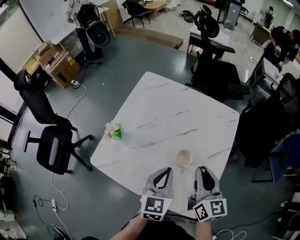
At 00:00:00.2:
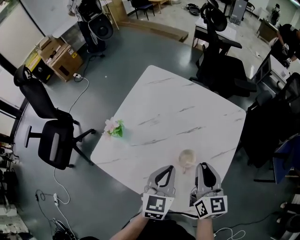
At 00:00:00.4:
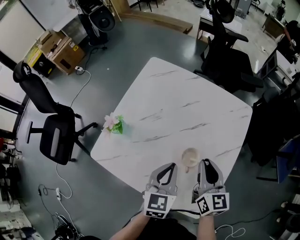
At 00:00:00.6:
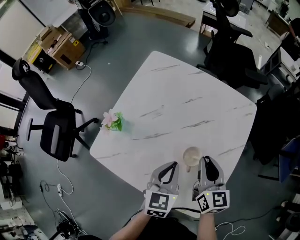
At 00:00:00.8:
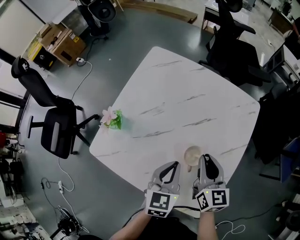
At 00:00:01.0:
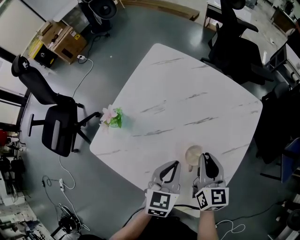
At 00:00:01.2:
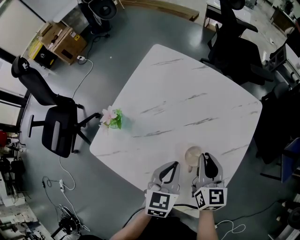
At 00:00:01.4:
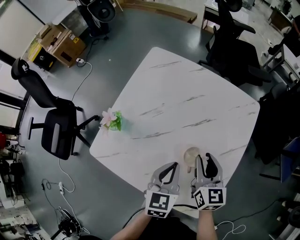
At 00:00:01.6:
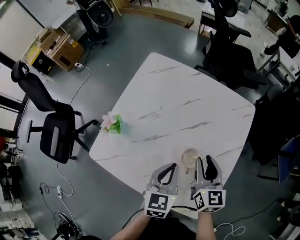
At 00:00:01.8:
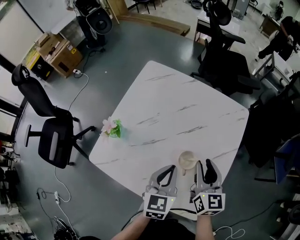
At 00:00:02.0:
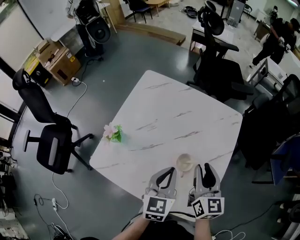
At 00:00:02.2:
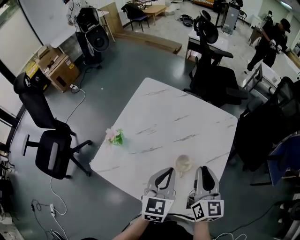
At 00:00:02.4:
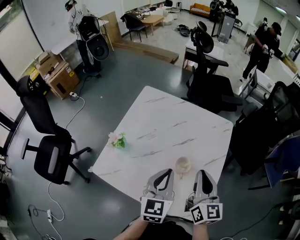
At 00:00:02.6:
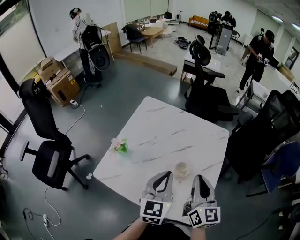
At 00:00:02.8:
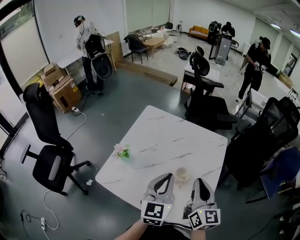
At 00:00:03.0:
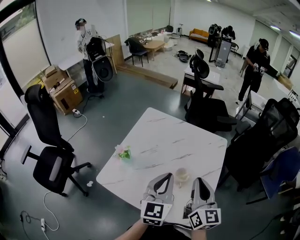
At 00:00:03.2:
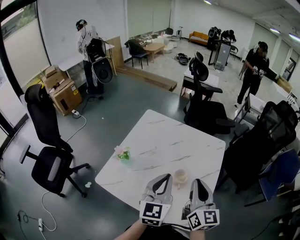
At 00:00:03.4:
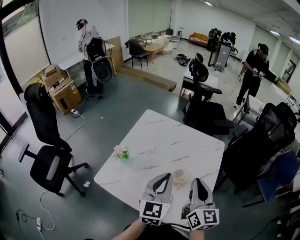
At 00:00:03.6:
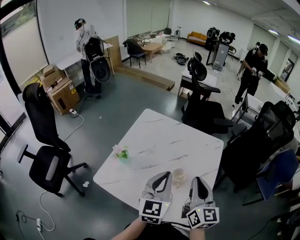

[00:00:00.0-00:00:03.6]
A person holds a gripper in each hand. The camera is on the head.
00:00:00.0 to 00:00:01.8: The right gripper shifts about 5 cm downward, and opens up.
00:00:01.8 to 00:00:03.6: The left gripper is displaced upward by approximately 15 cm, and changes its angle by roughly 20 degrees, while the right gripper goes some 15 cm upward and backward, and closes up.

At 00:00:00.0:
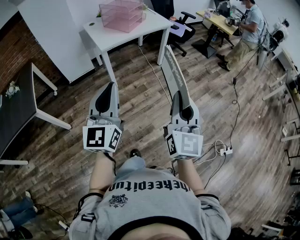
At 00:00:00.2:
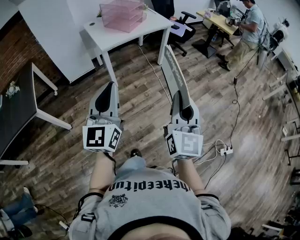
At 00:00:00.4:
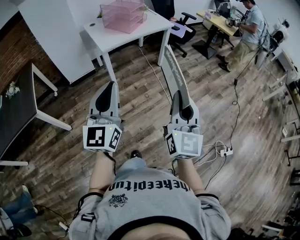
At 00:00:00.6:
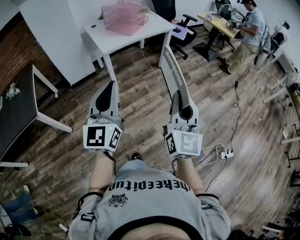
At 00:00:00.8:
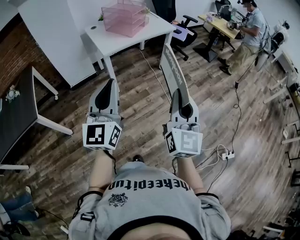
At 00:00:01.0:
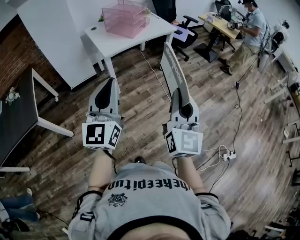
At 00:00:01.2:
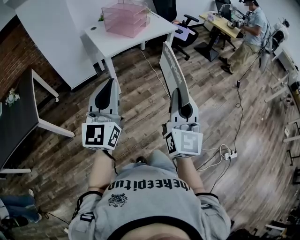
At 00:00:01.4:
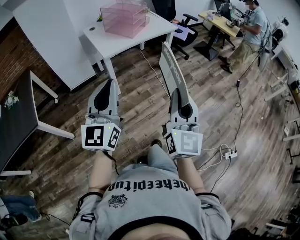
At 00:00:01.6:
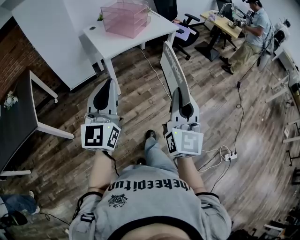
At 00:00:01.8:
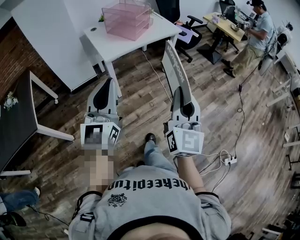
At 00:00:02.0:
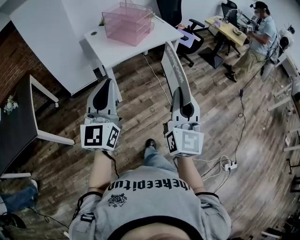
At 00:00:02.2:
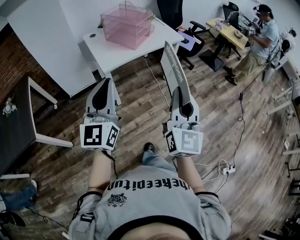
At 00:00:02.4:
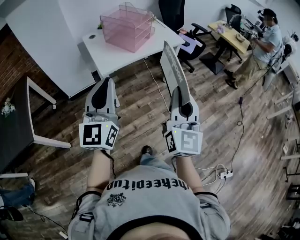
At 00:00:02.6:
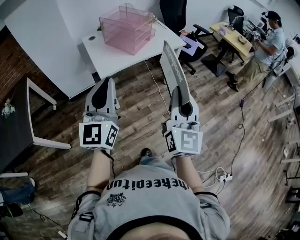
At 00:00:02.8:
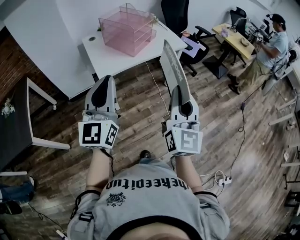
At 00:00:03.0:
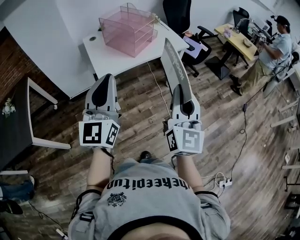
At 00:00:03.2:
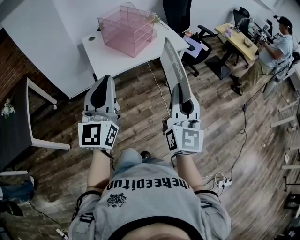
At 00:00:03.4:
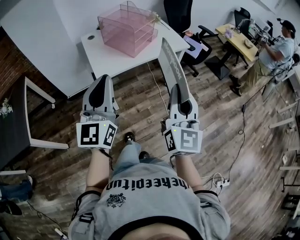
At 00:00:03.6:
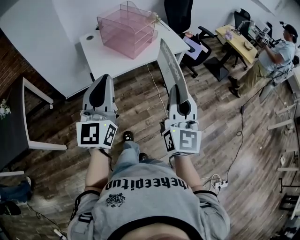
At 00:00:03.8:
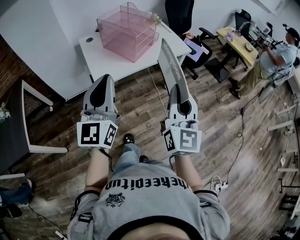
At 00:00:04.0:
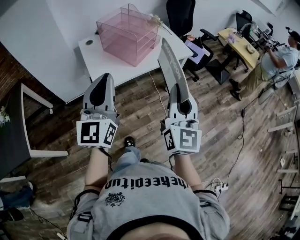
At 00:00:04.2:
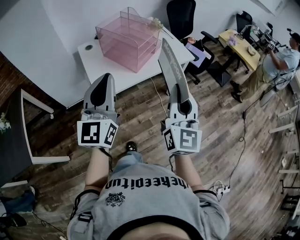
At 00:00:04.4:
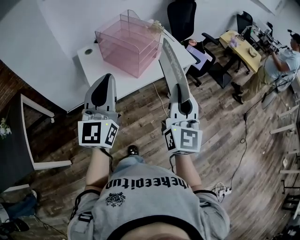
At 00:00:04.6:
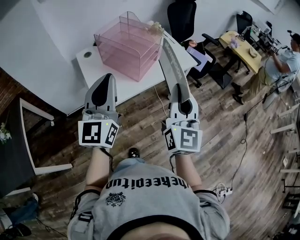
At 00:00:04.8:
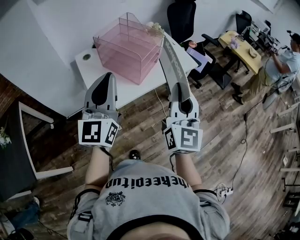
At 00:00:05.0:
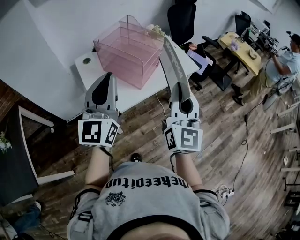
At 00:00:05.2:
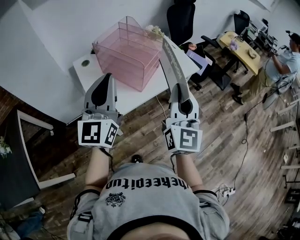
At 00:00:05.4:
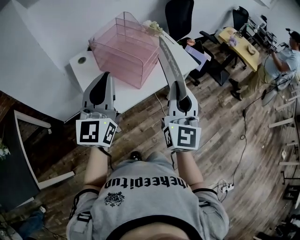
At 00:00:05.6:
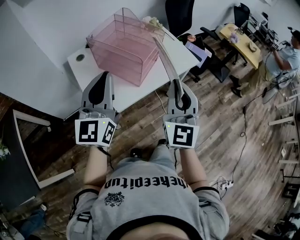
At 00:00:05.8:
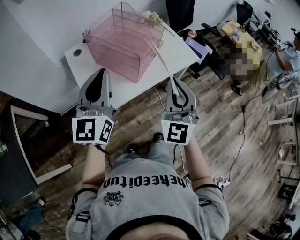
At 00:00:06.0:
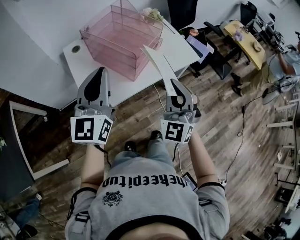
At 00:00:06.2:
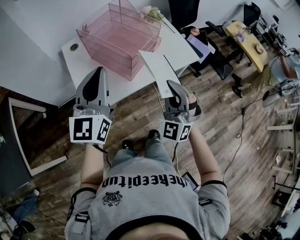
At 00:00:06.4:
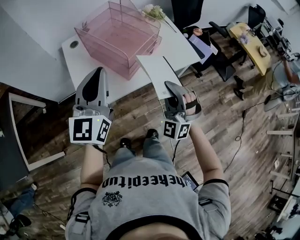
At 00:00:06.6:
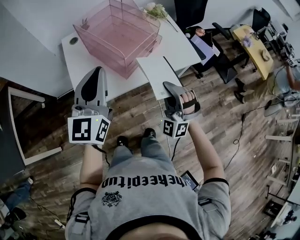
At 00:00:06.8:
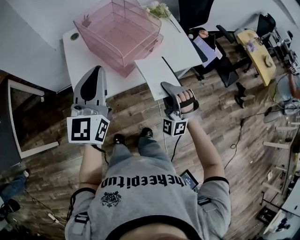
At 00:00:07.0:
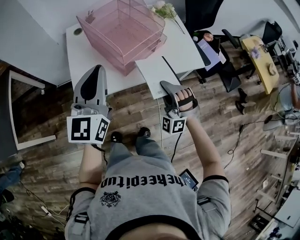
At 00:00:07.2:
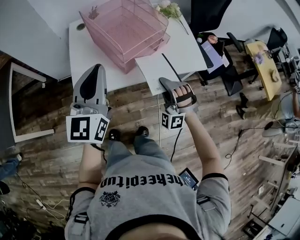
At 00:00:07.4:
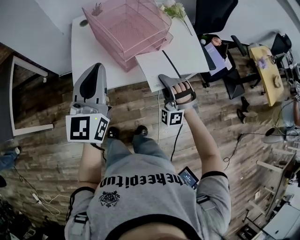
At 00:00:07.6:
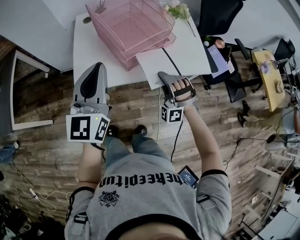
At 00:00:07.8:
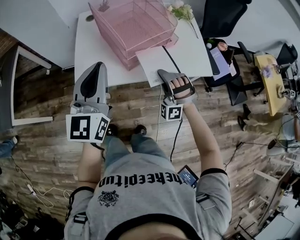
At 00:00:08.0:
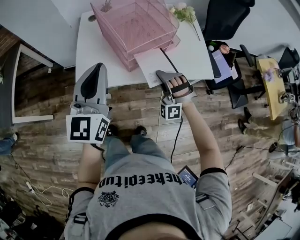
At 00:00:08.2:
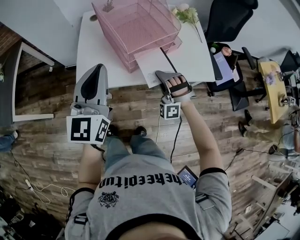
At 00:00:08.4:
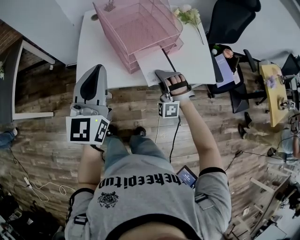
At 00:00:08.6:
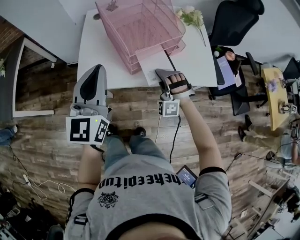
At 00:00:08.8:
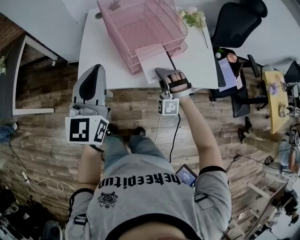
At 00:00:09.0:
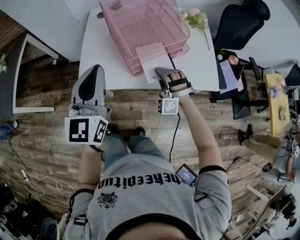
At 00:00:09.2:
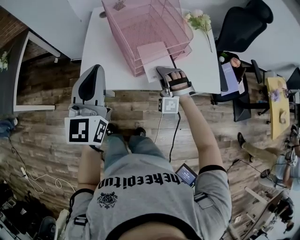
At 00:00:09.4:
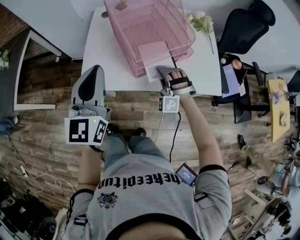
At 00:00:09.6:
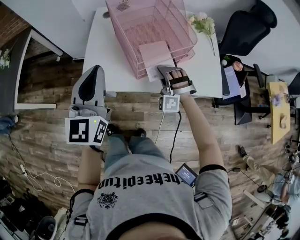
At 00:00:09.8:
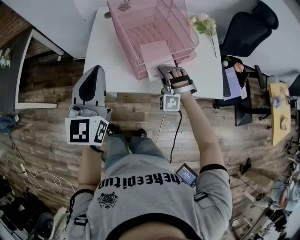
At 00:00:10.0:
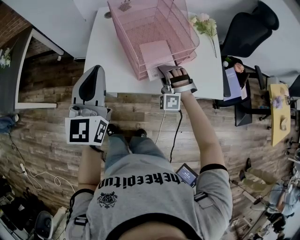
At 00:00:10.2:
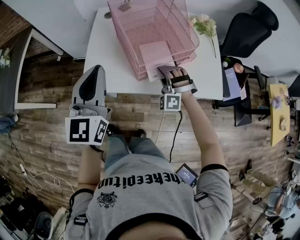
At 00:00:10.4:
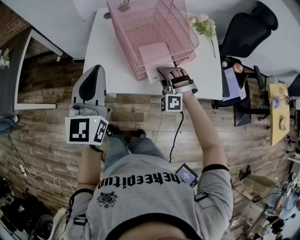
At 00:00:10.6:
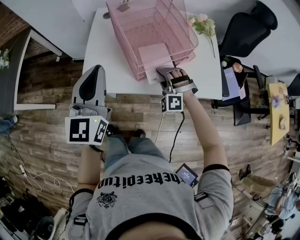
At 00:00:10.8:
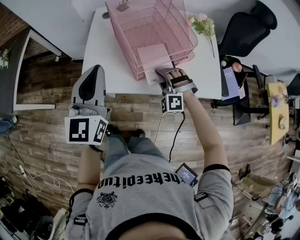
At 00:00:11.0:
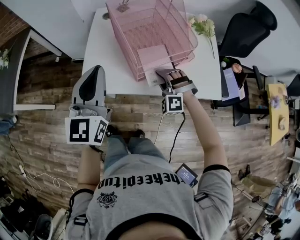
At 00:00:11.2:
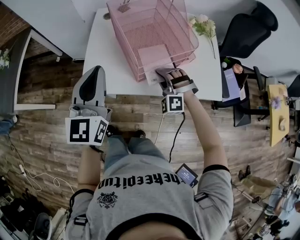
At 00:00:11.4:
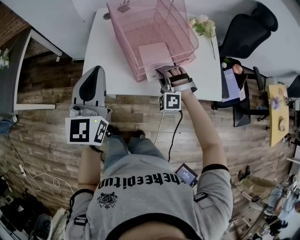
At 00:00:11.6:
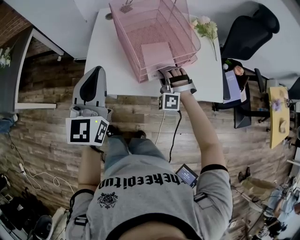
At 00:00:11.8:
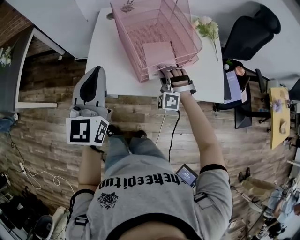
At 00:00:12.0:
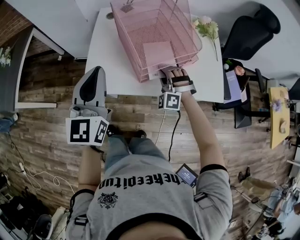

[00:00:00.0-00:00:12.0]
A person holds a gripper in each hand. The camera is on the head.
00:00:00.0 to 00:00:01.6: Both grippers move forward and to the left, some 15 cm.
00:00:01.6 to 00:00:03.0: The grippers both shift forward by roughly 25 cm.
00:00:03.0 to 00:00:04.4: Both grippers travel together forward, roughly 20 cm.
00:00:04.4 to 00:00:06.0: The left gripper travels forward by some 15 cm. Meanwhile the right gripper shifts some 20 cm forward and downward, and rotates around the line of its fingers by about 40 degrees, counterclockwise from behind.
00:00:06.0 to 00:00:07.6: The right gripper travels downward and forward by some 20 cm, and rotates around the line of its fingers by approximately 40 degrees, counterclockwise from behind; the left gripper moves to the right, approximately 10 cm, and changes its angle by approximately 20 degrees.
00:00:07.6 to 00:00:09.0: The right gripper shifts approximately 10 cm forward.
00:00:09.0 to 00:00:12.0: The grippers make only small movements.

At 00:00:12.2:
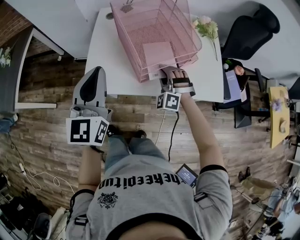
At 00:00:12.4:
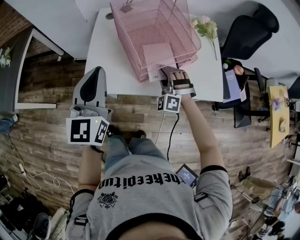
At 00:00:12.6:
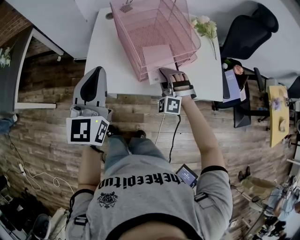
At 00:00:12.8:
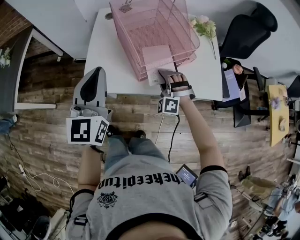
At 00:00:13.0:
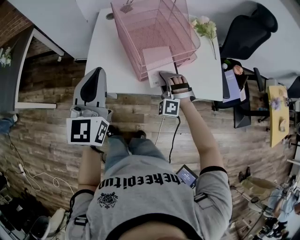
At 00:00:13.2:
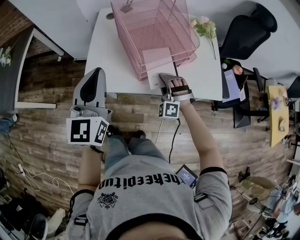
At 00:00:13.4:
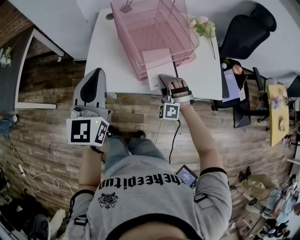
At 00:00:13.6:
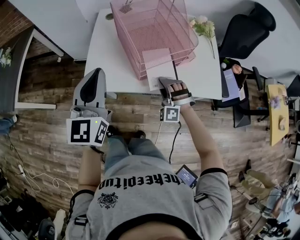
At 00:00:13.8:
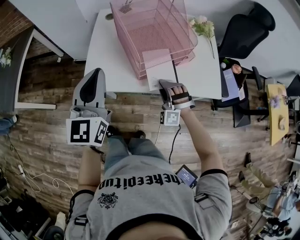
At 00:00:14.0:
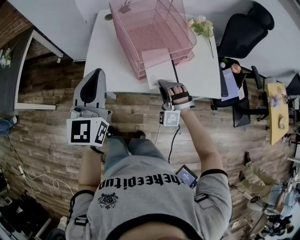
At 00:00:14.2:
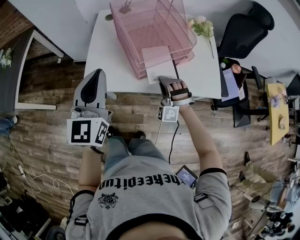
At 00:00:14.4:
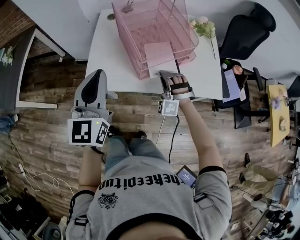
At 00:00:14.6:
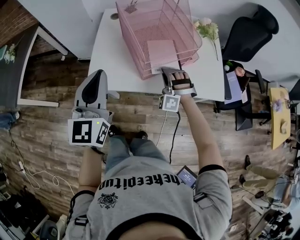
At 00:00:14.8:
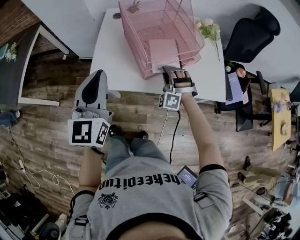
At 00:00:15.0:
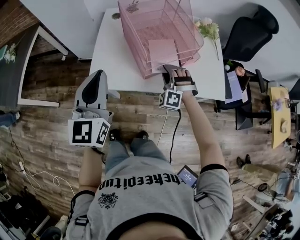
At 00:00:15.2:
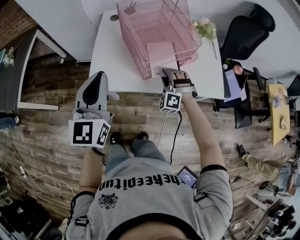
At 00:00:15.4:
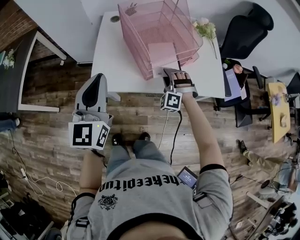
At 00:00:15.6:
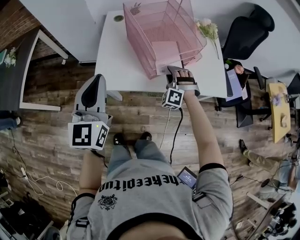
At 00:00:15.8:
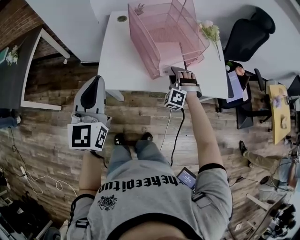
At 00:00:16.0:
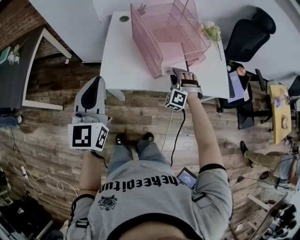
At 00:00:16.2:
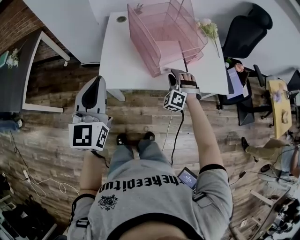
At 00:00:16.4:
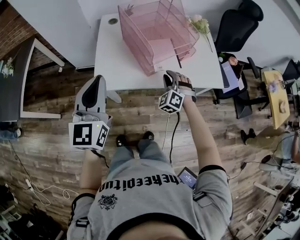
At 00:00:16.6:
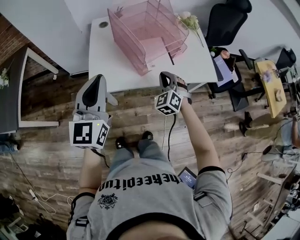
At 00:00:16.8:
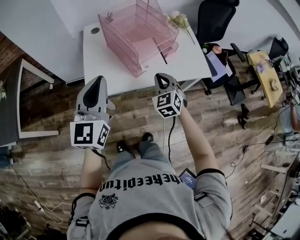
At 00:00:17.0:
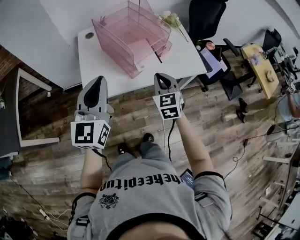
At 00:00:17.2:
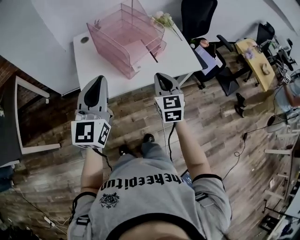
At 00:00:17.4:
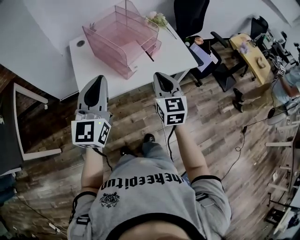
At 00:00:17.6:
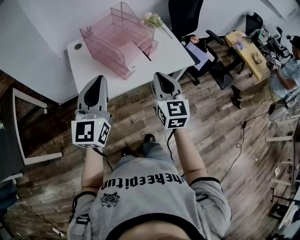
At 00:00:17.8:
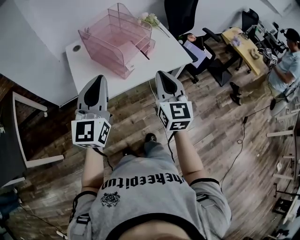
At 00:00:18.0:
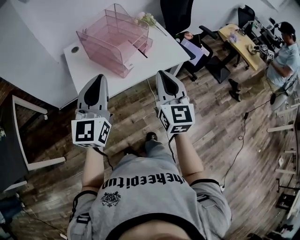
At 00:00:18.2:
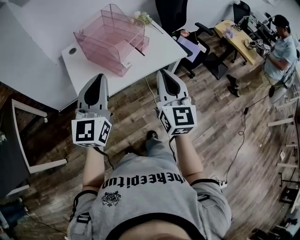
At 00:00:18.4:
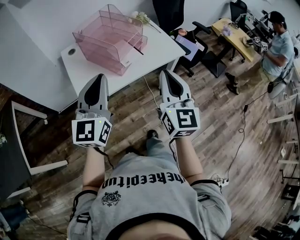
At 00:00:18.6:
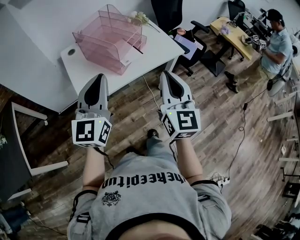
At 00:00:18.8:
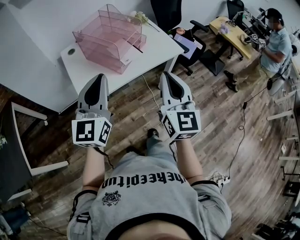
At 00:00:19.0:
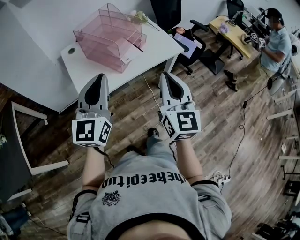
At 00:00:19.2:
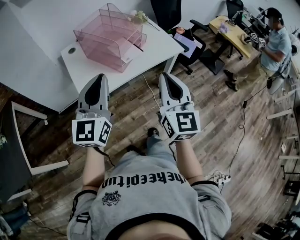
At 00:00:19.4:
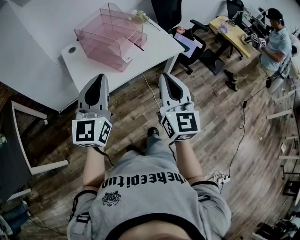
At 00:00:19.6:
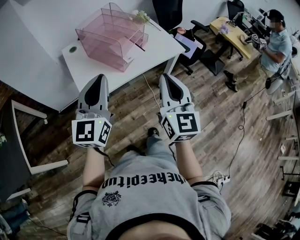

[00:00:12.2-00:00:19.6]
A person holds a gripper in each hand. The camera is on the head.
00:00:12.2 to 00:00:13.6: The right gripper is displaced backward by about 5 cm.
00:00:13.6 to 00:00:15.2: The right gripper closes, then opens again.
00:00:15.2 to 00:00:16.6: The left gripper changes place by approximately 5 cm. The right gripper is displaced backward and upward by approximately 10 cm, rotates roughly 40 degrees, and closes its fingers.
00:00:16.6 to 00:00:18.2: The right gripper travels upward and backward by some 30 cm, and rolls clockwise, seen from behind, by roughly 50 degrees, while the left gripper shifts by approximately 10 cm, and rotates roughly 20 degrees.
00:00:18.2 to 00:00:19.6: The left gripper changes place by roughly 5 cm. Meanwhile the right gripper heads backward, covering some 5 cm.
